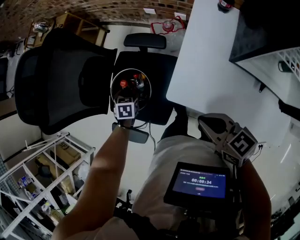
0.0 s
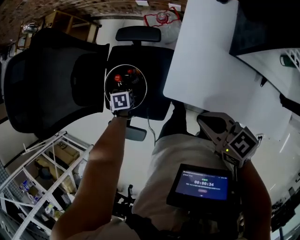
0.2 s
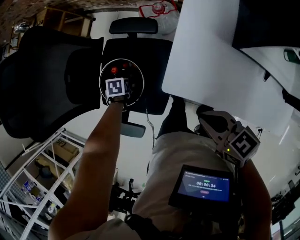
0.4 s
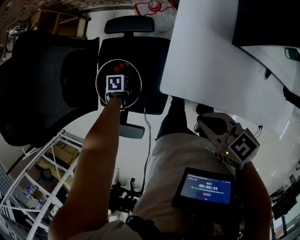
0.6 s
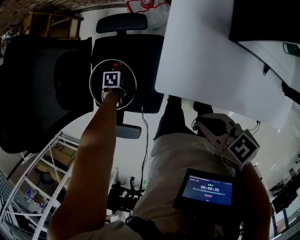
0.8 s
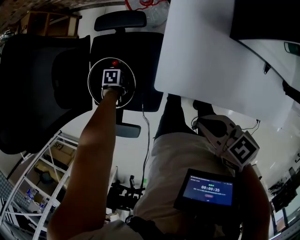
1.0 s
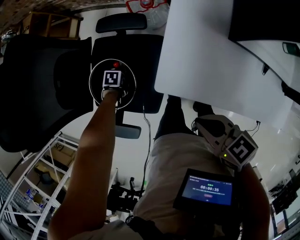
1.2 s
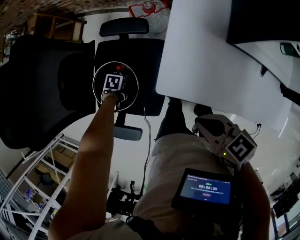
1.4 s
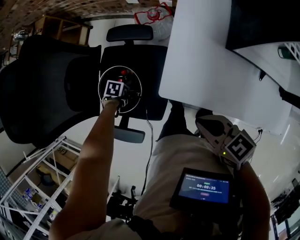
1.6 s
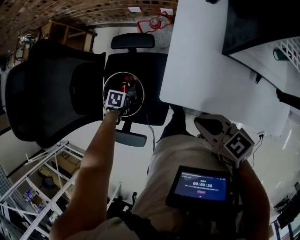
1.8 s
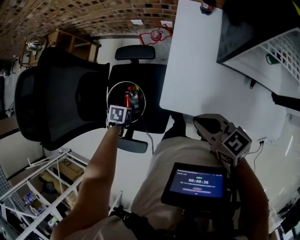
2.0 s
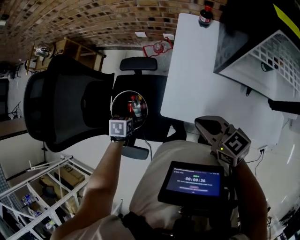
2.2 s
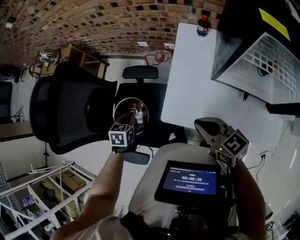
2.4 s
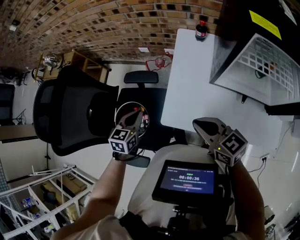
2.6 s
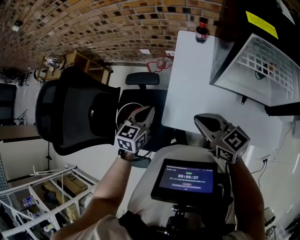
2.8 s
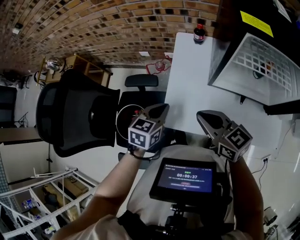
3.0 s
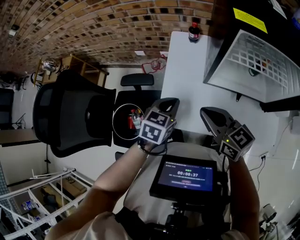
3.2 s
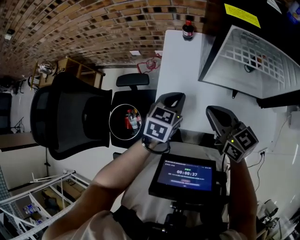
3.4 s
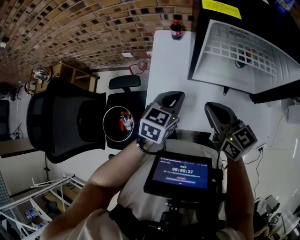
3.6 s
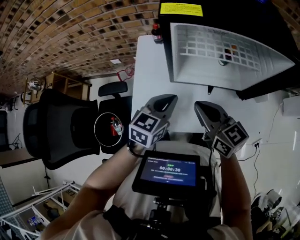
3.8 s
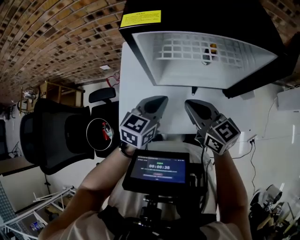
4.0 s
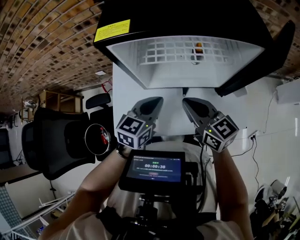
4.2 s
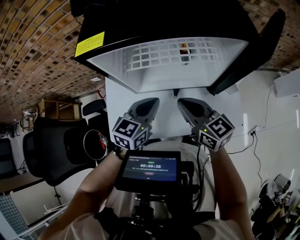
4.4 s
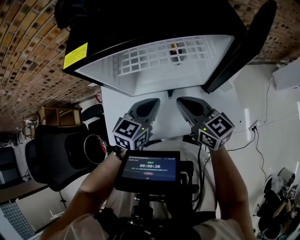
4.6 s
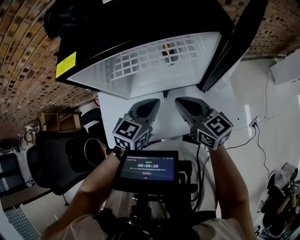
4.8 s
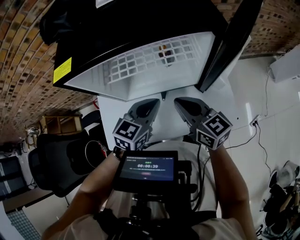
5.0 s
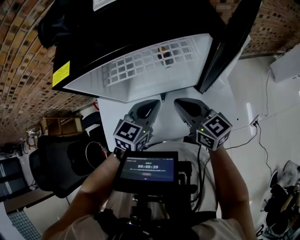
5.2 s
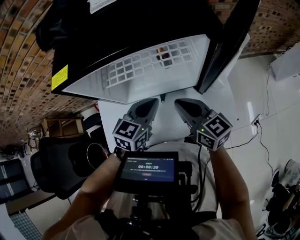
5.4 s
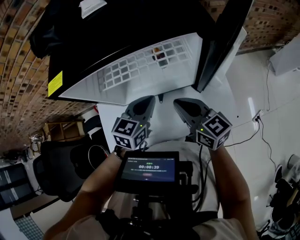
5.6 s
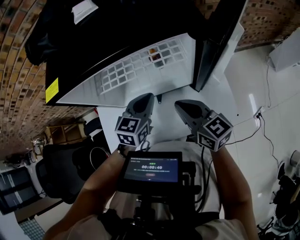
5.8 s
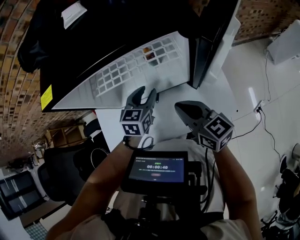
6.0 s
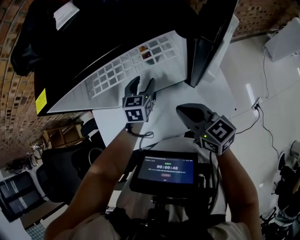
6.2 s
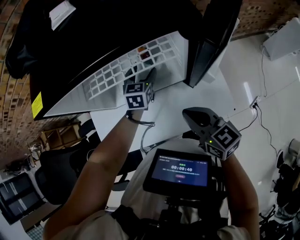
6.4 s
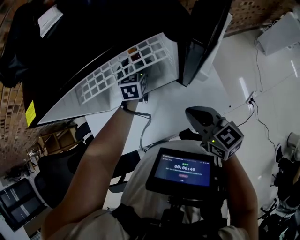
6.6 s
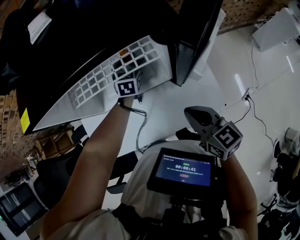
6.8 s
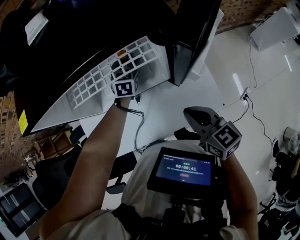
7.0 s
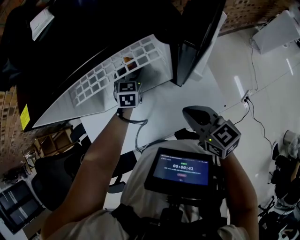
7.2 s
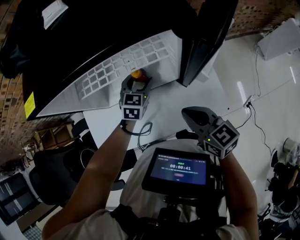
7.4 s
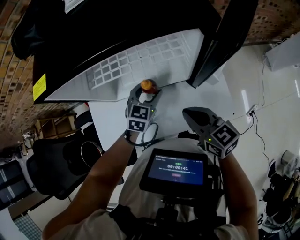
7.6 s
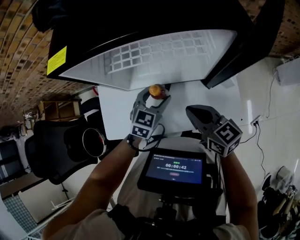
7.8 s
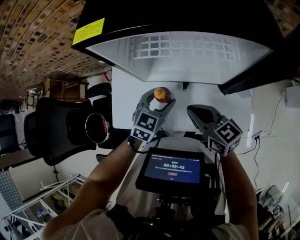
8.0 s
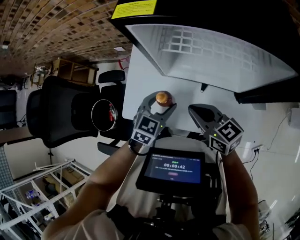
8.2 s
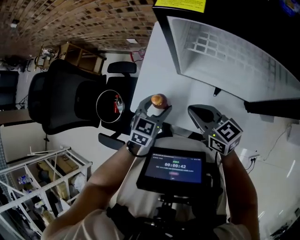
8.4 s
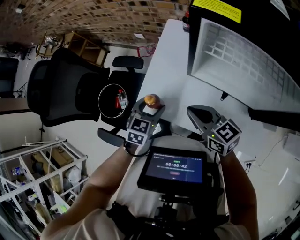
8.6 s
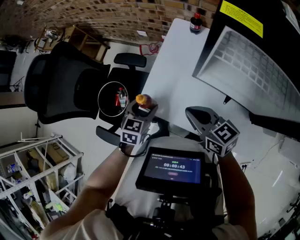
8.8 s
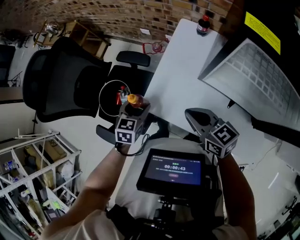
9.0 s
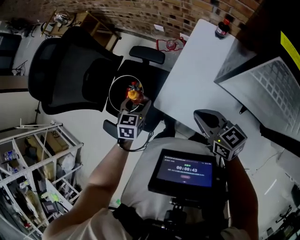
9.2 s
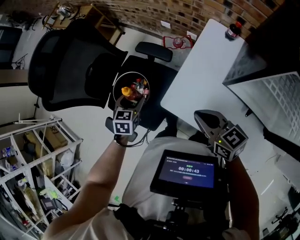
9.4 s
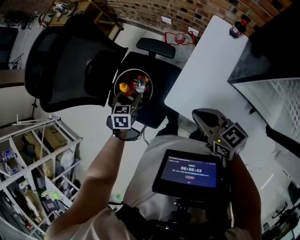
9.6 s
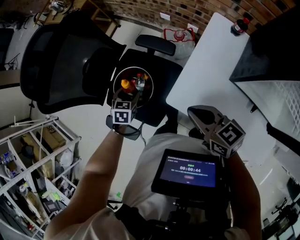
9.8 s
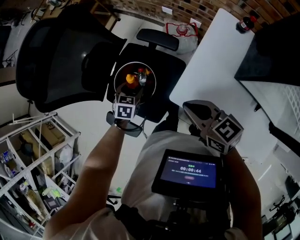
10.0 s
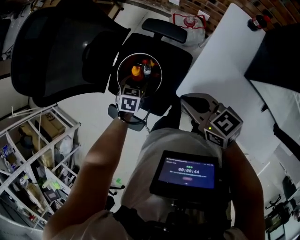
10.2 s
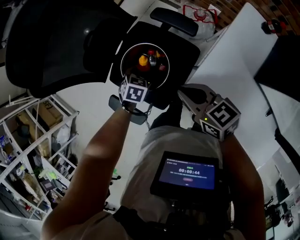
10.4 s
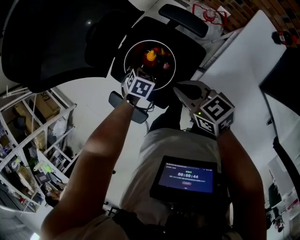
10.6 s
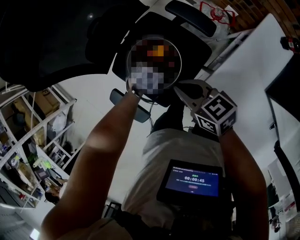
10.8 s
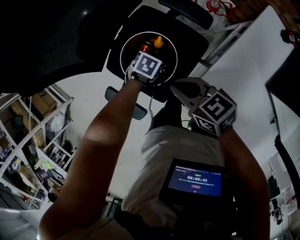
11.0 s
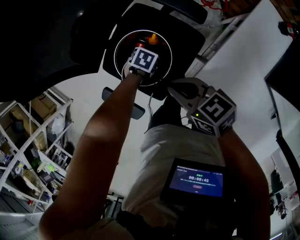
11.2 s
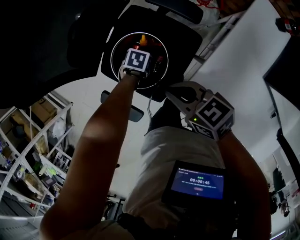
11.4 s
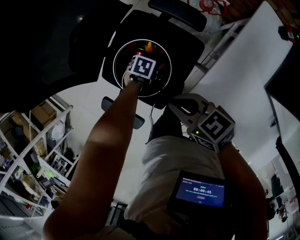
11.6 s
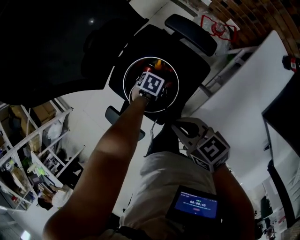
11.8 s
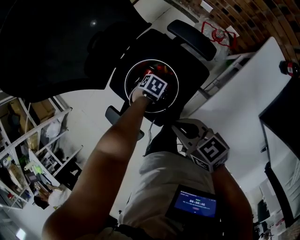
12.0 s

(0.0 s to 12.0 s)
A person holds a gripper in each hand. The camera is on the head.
0.0 s - 1.6 s: The left gripper travels downward by about 10 cm, and rotates roughly 30 degrees.
1.6 s - 3.0 s: The right gripper shifts some 10 cm upward, and swivels about 30 degrees, while the left gripper shifts some 30 cm upward, points its fingers approximately 50 degrees further upward, and closes.
3.0 s - 4.4 s: The two grippers go roughly 30 cm to the right. The right gripper swivels about 20 degrees. Meanwhile the left gripper rotates roughly 20 degrees.
4.4 s - 6.0 s: The right gripper goes some 10 cm to the right. The left gripper travels forward, to the right and downward by approximately 15 cm, and opens its fingers.
6.0 s - 7.6 s: The left gripper travels forward and back again, approximately 15 cm each way.
7.6 s - 9.0 s: The right gripper ends up roughly 35 cm from where it was, and rotates approximately 40 degrees. The left gripper changes place by about 50 cm, and swivels roughly 50 degrees.
9.0 s - 10.4 s: The left gripper travels to the left, downward and forward by roughly 25 cm, and turns by approximately 20 degrees; the right gripper is displaced to the left and forward by some 25 cm.
10.4 s - 12.0 s: The left gripper goes some 15 cm downward, and changes its angle by roughly 30 degrees. Meanwhile the right gripper ends up approximately 5 cm from where it was.

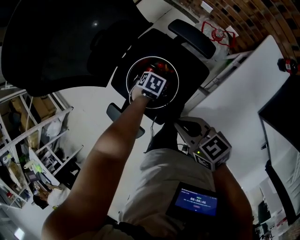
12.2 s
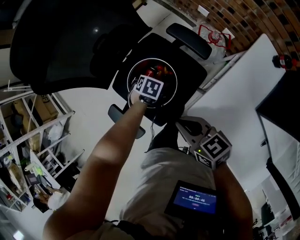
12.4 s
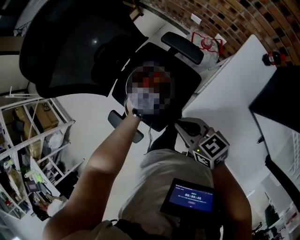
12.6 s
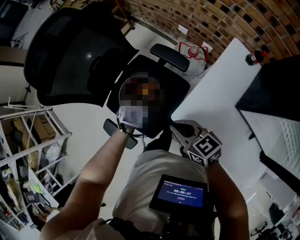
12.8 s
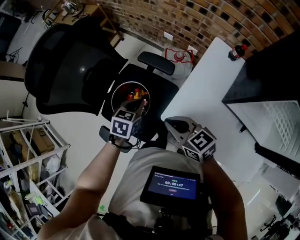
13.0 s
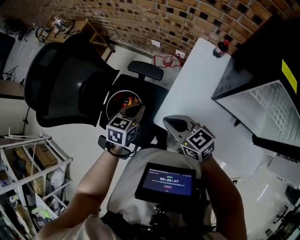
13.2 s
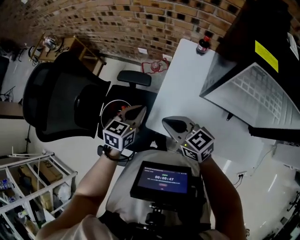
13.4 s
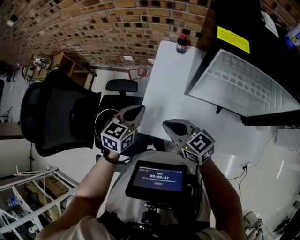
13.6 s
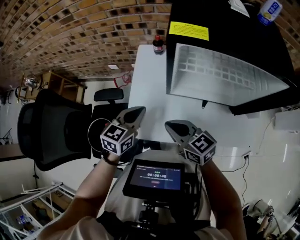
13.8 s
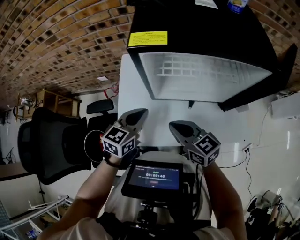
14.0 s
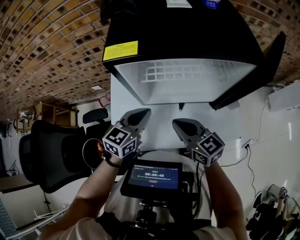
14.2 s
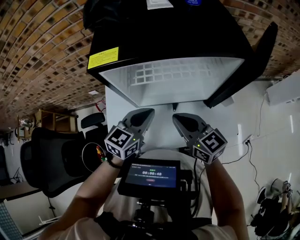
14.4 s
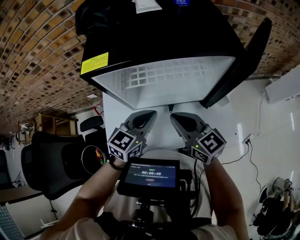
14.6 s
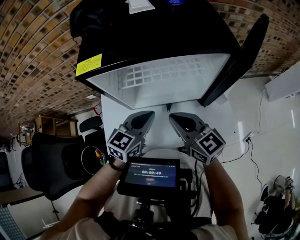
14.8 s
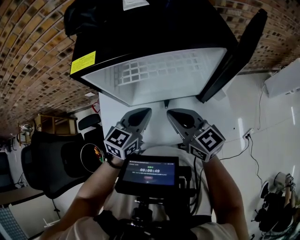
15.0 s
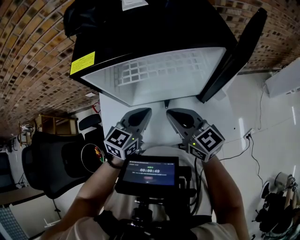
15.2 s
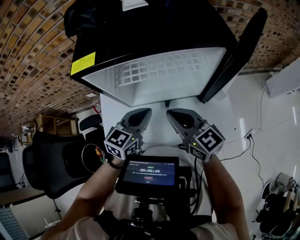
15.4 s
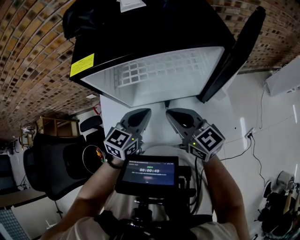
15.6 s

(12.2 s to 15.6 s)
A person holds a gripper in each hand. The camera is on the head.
12.2 s - 13.8 s: The left gripper is displaced upward by roughly 40 cm, tips its fingers upward by approximately 60 degrees, and closes; the right gripper shifts by about 30 cm, and turns by approximately 50 degrees.
13.8 s - 15.6 s: The grippers both shift to the right by some 20 cm. The left gripper rotates about 20 degrees. The right gripper turns by approximately 30 degrees.

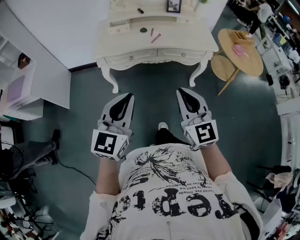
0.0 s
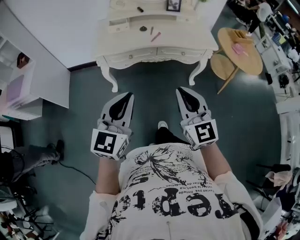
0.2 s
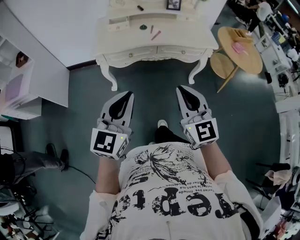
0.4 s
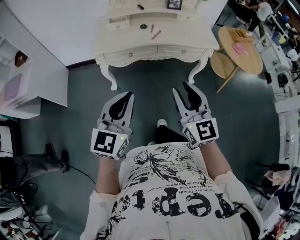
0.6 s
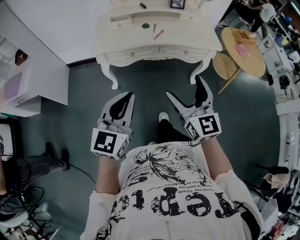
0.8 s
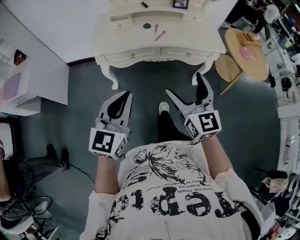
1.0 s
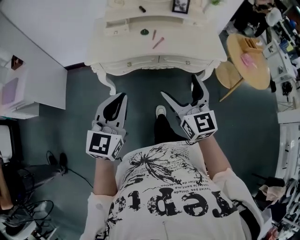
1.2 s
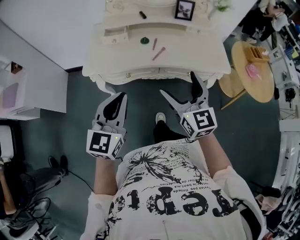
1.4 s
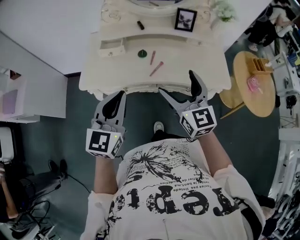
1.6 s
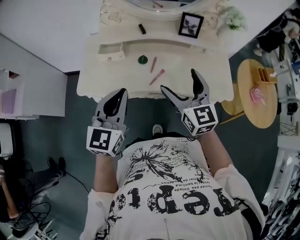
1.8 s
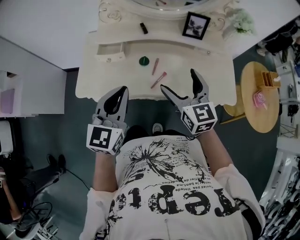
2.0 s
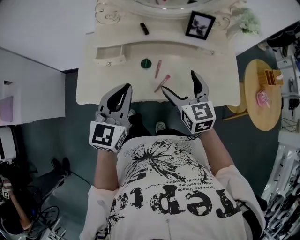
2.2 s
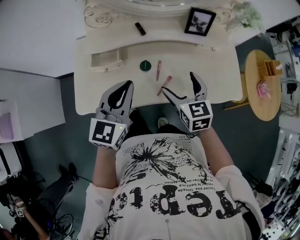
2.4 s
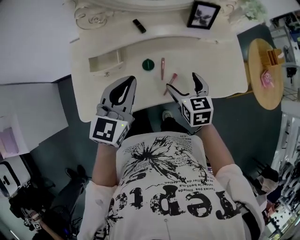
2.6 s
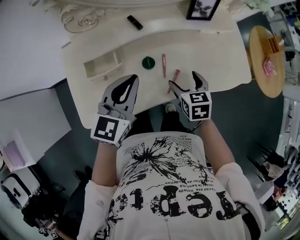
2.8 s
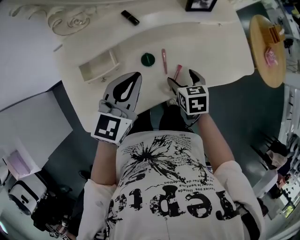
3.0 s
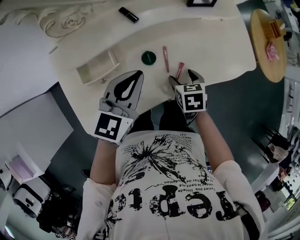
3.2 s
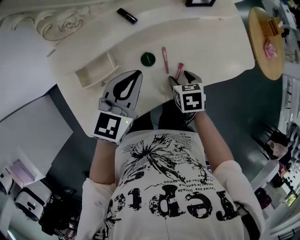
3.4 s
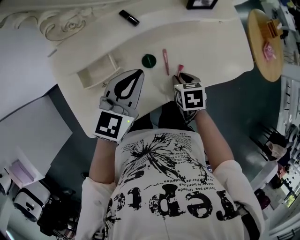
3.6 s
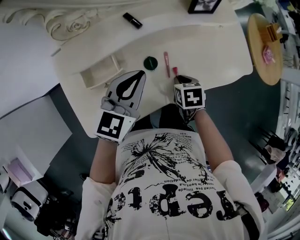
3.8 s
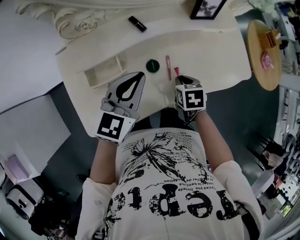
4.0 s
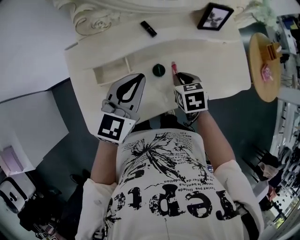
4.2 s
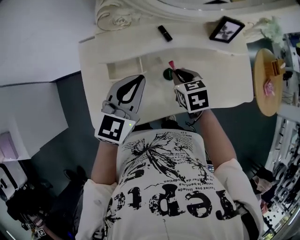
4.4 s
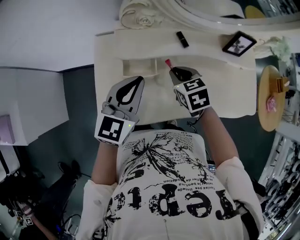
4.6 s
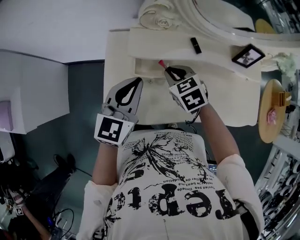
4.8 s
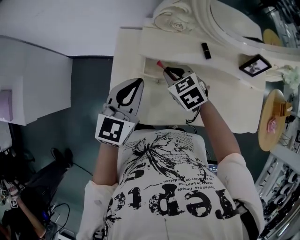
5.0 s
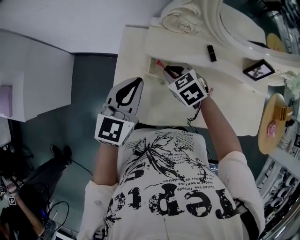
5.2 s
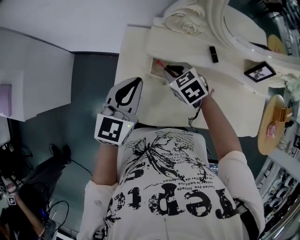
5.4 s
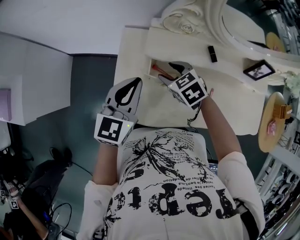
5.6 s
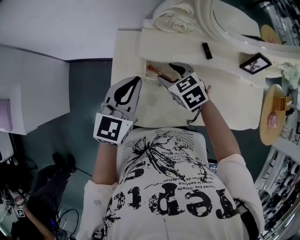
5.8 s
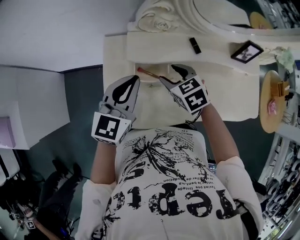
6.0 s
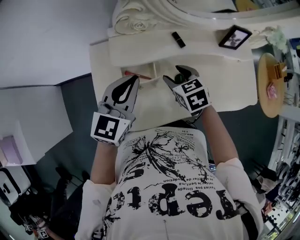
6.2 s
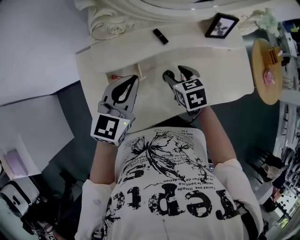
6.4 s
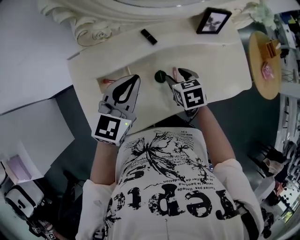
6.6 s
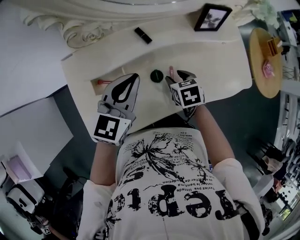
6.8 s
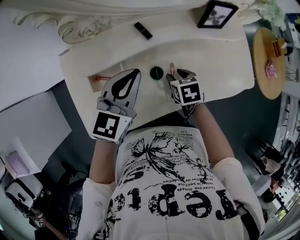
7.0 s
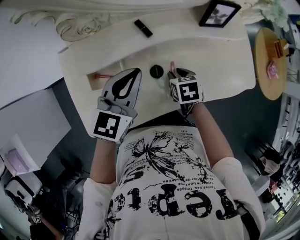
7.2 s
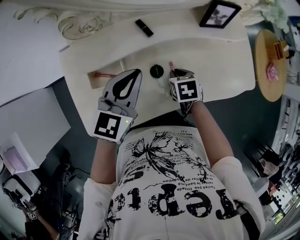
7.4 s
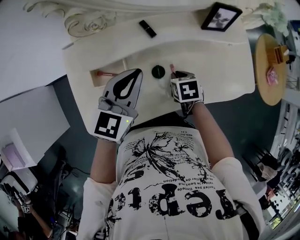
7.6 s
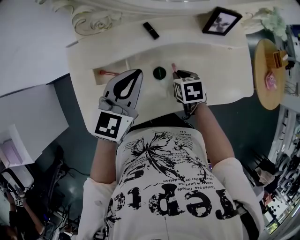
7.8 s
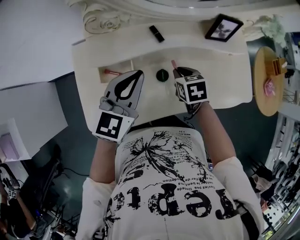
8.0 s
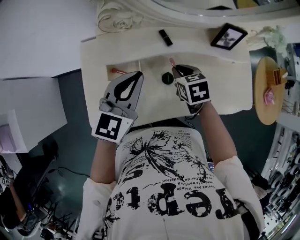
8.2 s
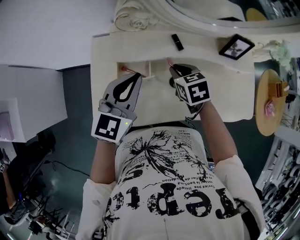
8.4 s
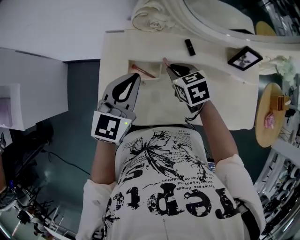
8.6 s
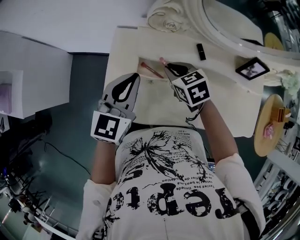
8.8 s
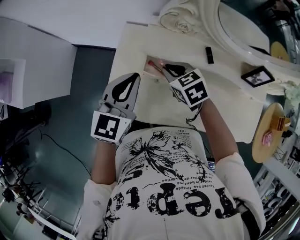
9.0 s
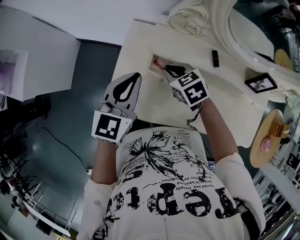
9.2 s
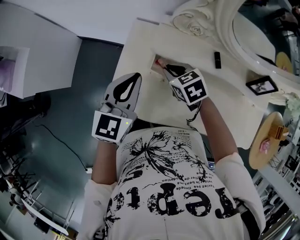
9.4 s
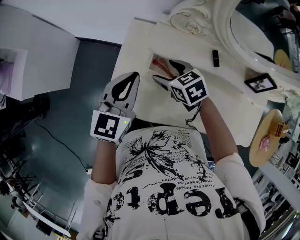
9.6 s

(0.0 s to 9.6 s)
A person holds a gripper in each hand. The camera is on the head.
0.0 s - 1.6 s: The two grippers go approximately 40 cm forward. The right gripper opens.
1.6 s - 3.2 s: The left gripper moves some 40 cm, and swivels roughly 40 degrees; the right gripper shifts roughly 30 cm downward, and angles its fingers downward, by roughly 60 degrees.
3.2 s - 4.8 s: The right gripper ends up approximately 30 cm from where it was, rolls counterclockwise, seen from behind, by about 40 degrees, and closes, while the left gripper shifts by some 20 cm, and rotates roughly 30 degrees.
4.8 s - 6.4 s: The left gripper shifts by some 10 cm, while the right gripper shifts by approximately 10 cm, turns by roughly 30 degrees, and opens its fingers.
6.4 s - 8.0 s: Both grippers travel together to the right, approximately 5 cm. The right gripper goes downward and returns, approximately 10 cm each way, and closes up.
8.0 s - 9.6 s: The right gripper ends up roughly 25 cm from where it was, changes its angle by some 50 degrees, and opens. The left gripper moves some 20 cm, and turns by approximately 30 degrees.
